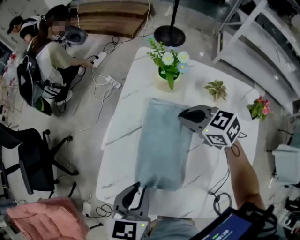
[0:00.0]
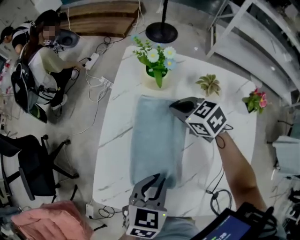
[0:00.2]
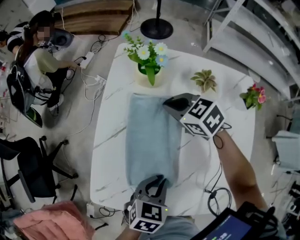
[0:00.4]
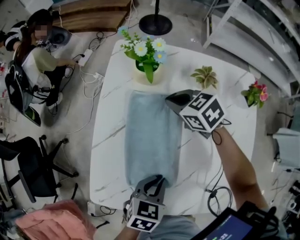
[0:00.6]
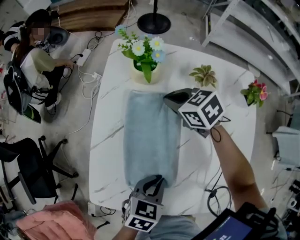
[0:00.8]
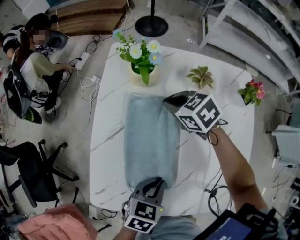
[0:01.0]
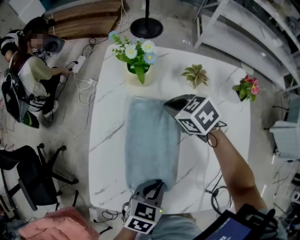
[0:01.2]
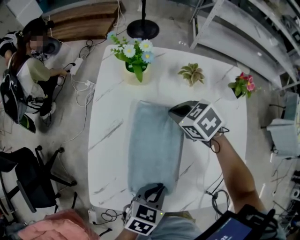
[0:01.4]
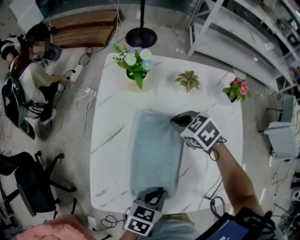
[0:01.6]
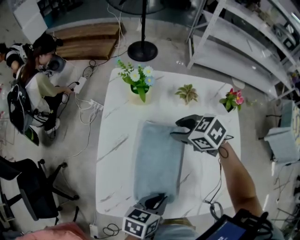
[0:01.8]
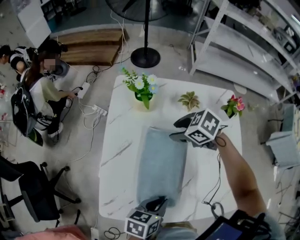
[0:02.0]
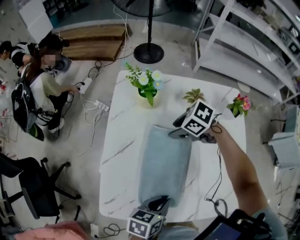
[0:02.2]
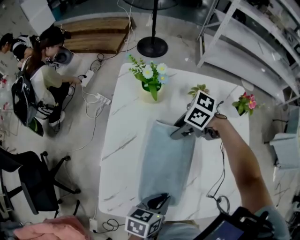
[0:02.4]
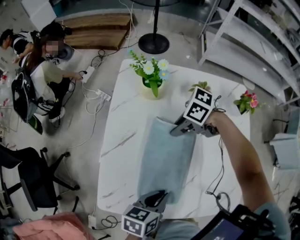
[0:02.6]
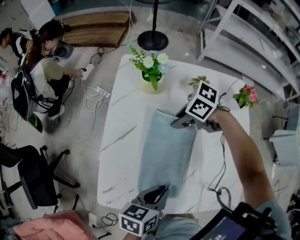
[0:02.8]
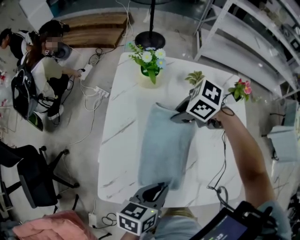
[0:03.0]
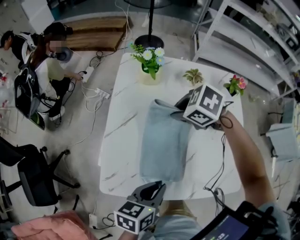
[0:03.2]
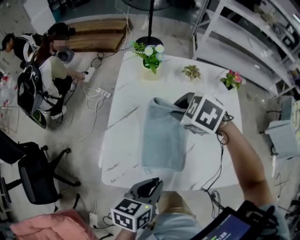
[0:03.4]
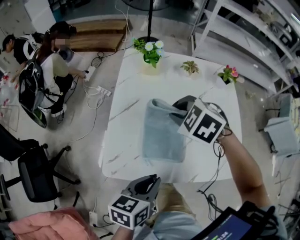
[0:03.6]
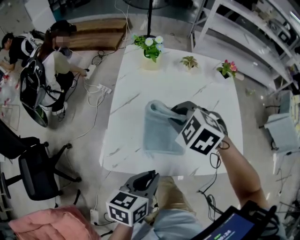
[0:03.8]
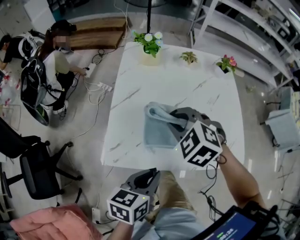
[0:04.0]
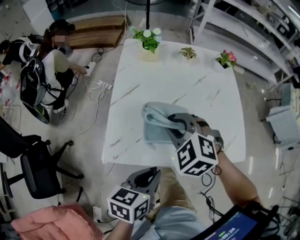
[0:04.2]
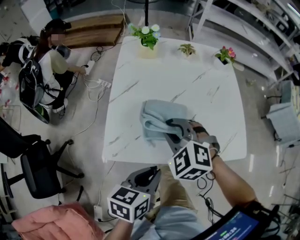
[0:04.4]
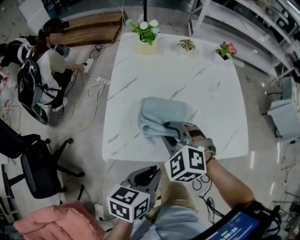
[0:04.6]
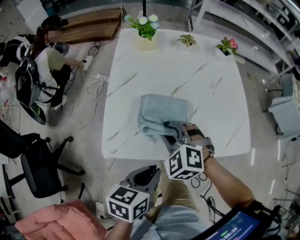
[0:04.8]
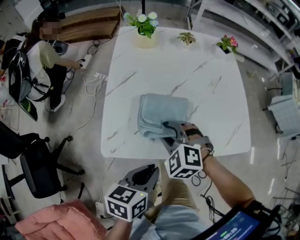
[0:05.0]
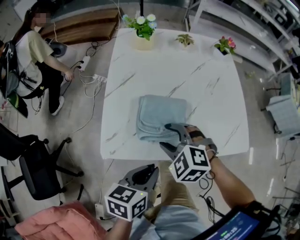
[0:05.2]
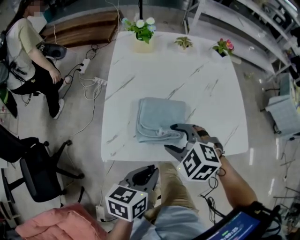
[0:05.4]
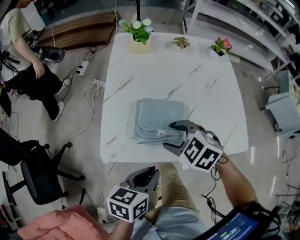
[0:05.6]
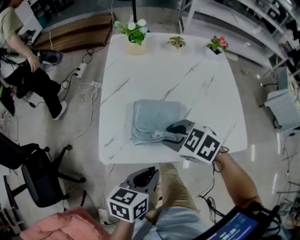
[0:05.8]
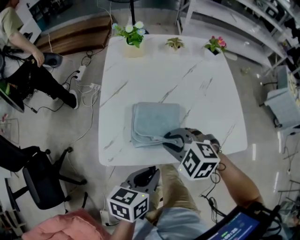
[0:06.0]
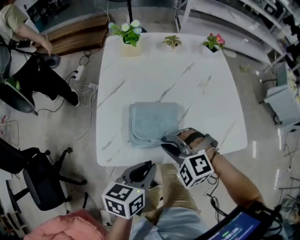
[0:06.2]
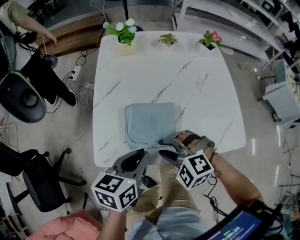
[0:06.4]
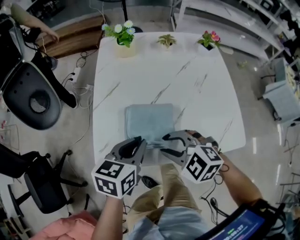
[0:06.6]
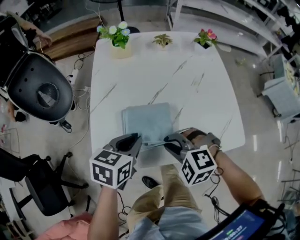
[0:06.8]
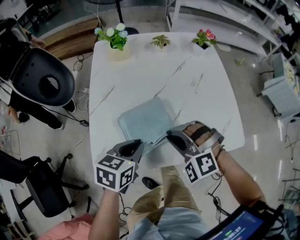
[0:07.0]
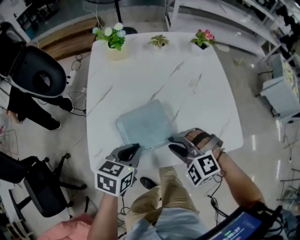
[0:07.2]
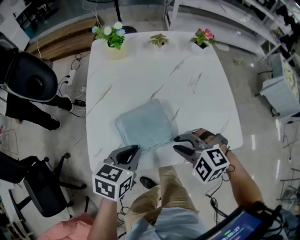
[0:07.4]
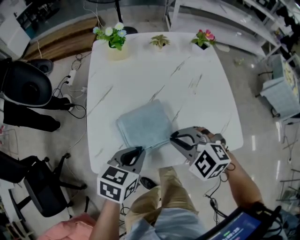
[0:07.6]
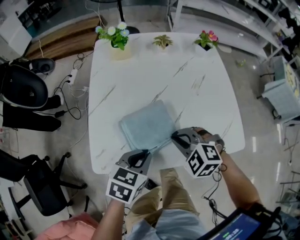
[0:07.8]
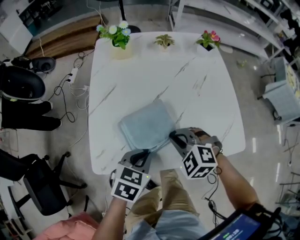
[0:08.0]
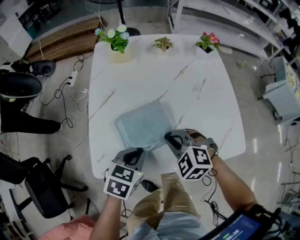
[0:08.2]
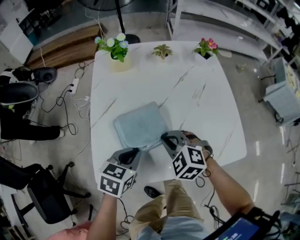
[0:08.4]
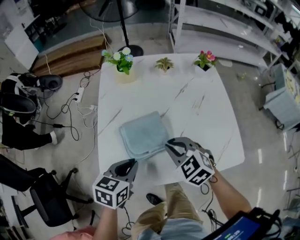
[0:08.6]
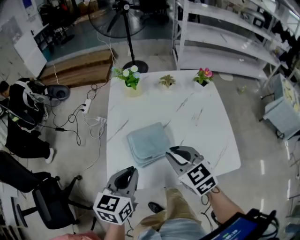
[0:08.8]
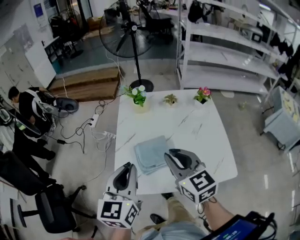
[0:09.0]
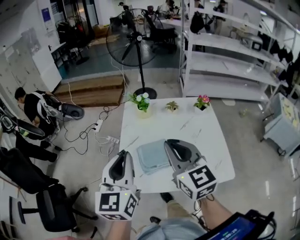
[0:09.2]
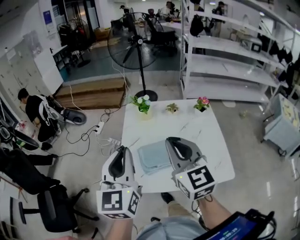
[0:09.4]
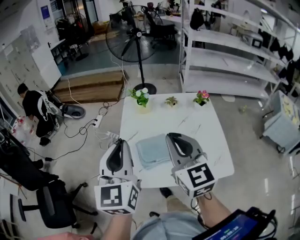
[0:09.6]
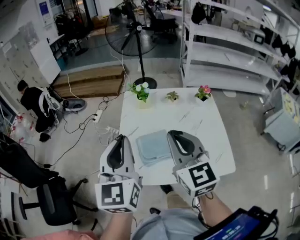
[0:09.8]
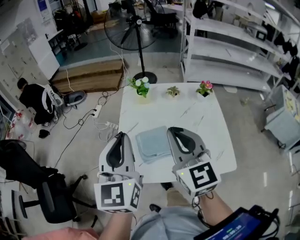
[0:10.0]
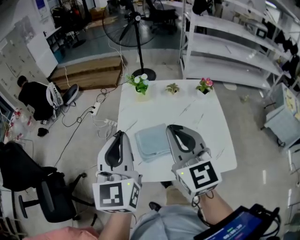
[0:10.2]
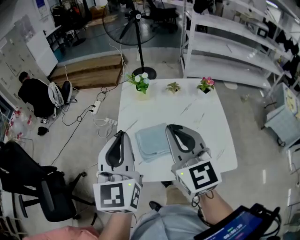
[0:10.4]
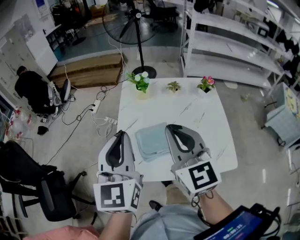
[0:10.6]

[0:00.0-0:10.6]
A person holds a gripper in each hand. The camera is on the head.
0:00.0 to 0:01.6: The left gripper changes place by some 15 cm, and rotates some 40 degrees. The right gripper ends up some 10 cm from where it was, and rotates about 20 degrees.
0:01.6 to 0:03.0: The right gripper moves up and down over approximately 5 cm, changing direction 2 times, changes its angle by about 30 degrees, and opens, then closes once more. The left gripper travels upward by approximately 5 cm.
0:03.0 to 0:04.6: The left gripper ends up some 15 cm from where it was; the right gripper moves approximately 10 cm upward and comes back, and changes its angle by approximately 60 degrees.
0:04.6 to 0:06.0: The right gripper opens, then closes once more.
0:06.0 to 0:07.6: The right gripper goes roughly 5 cm to the right. The left gripper shifts about 10 cm forward, and rotates approximately 20 degrees.
0:07.6 to 0:09.0: Both grippers move upward, roughly 20 cm. The left gripper angles its fingers upward, by some 30 degrees. The right gripper points its fingers approximately 30 degrees further upward.
0:09.0 to 0:10.6: The two grippers go approximately 10 cm upward.

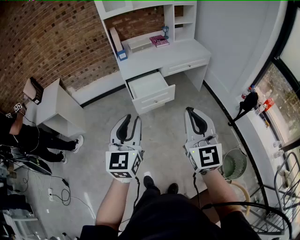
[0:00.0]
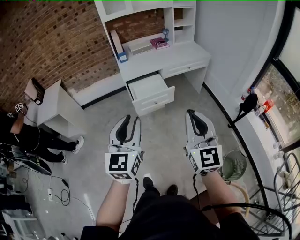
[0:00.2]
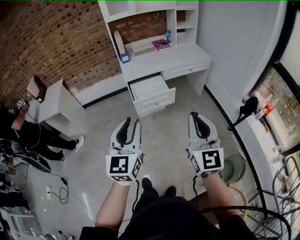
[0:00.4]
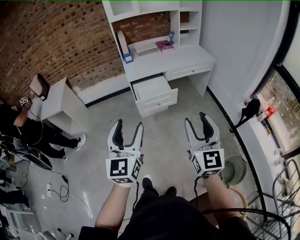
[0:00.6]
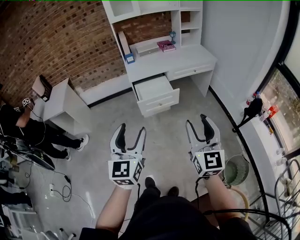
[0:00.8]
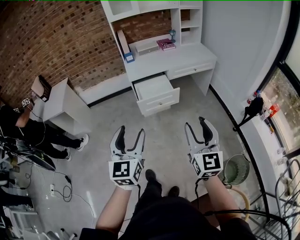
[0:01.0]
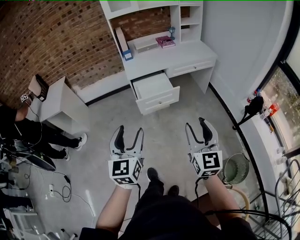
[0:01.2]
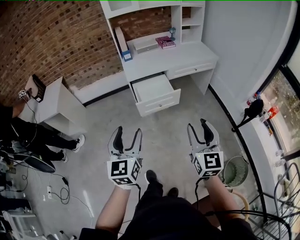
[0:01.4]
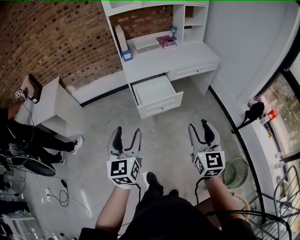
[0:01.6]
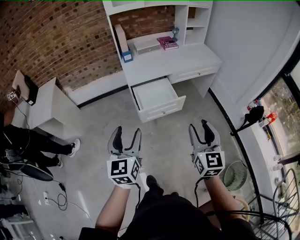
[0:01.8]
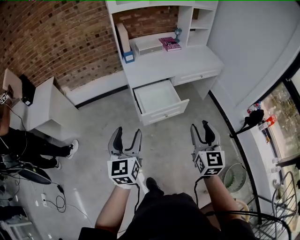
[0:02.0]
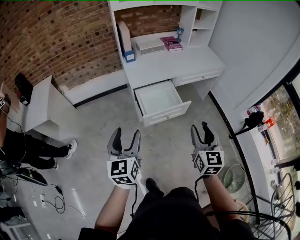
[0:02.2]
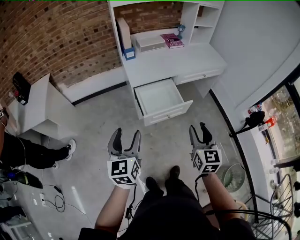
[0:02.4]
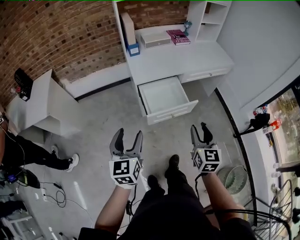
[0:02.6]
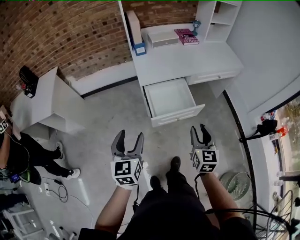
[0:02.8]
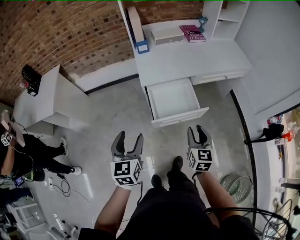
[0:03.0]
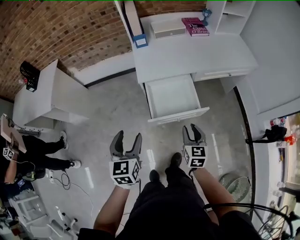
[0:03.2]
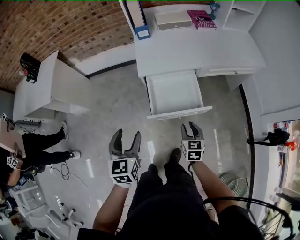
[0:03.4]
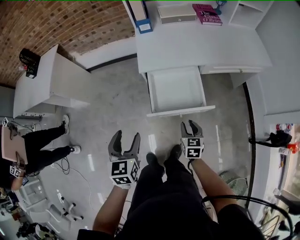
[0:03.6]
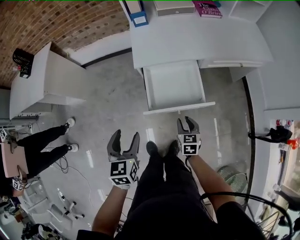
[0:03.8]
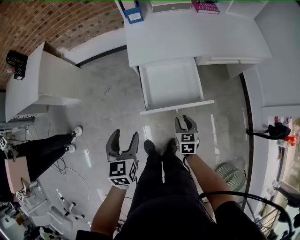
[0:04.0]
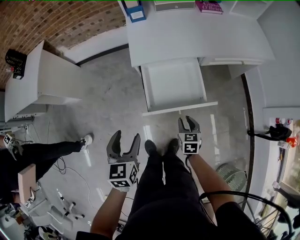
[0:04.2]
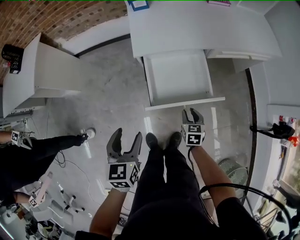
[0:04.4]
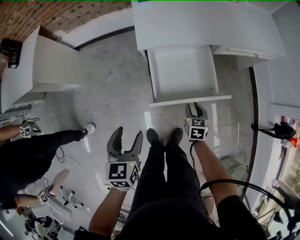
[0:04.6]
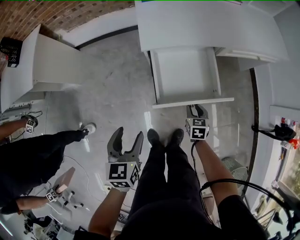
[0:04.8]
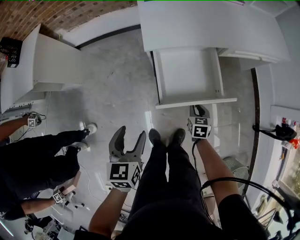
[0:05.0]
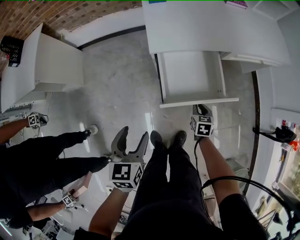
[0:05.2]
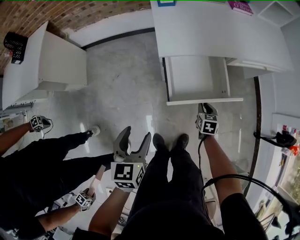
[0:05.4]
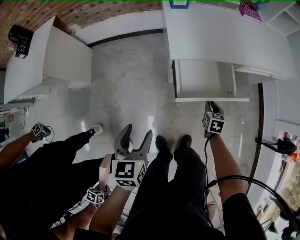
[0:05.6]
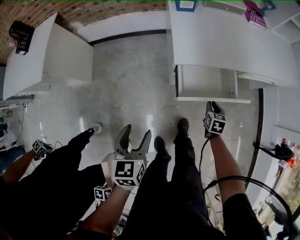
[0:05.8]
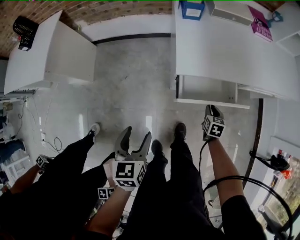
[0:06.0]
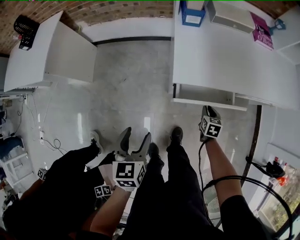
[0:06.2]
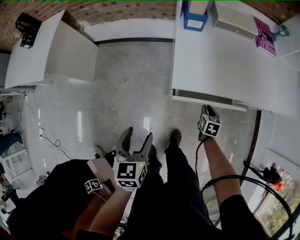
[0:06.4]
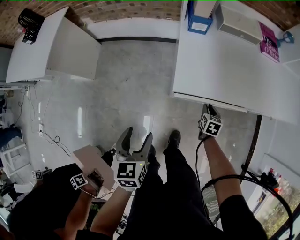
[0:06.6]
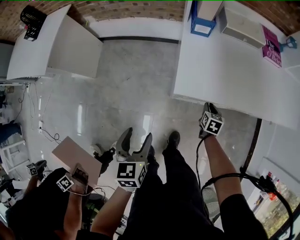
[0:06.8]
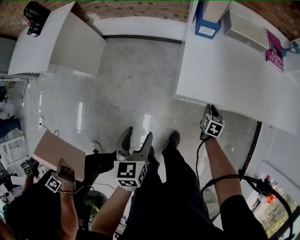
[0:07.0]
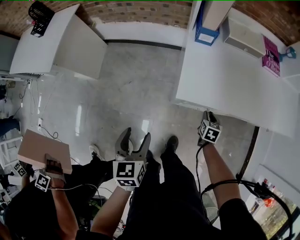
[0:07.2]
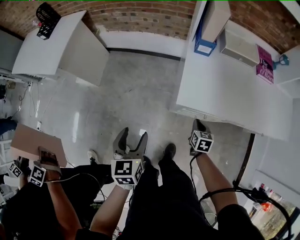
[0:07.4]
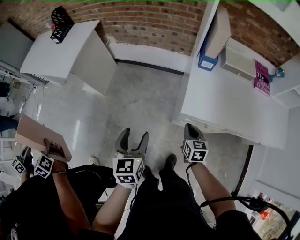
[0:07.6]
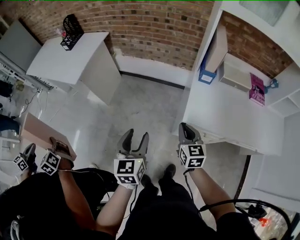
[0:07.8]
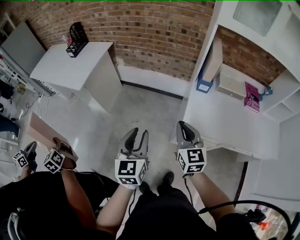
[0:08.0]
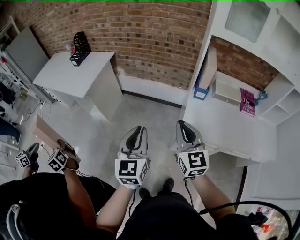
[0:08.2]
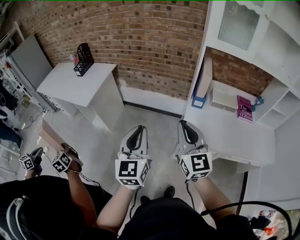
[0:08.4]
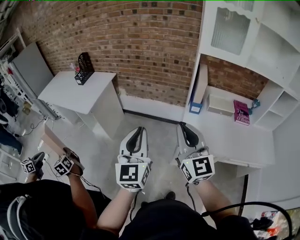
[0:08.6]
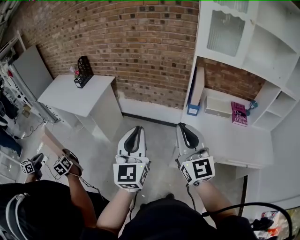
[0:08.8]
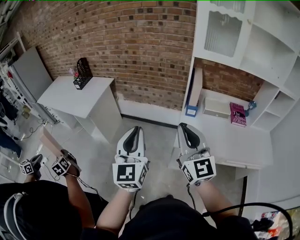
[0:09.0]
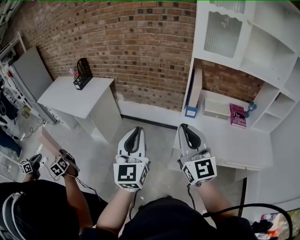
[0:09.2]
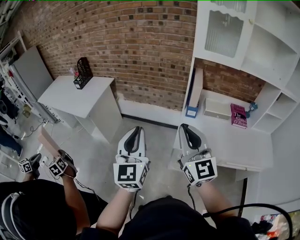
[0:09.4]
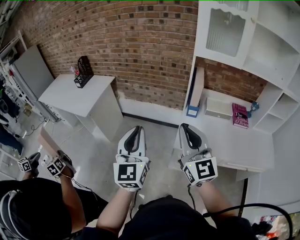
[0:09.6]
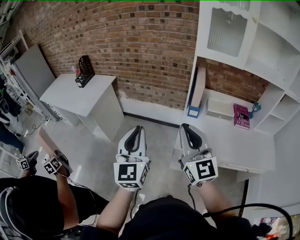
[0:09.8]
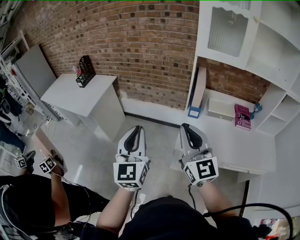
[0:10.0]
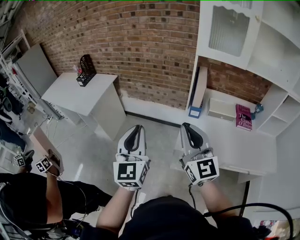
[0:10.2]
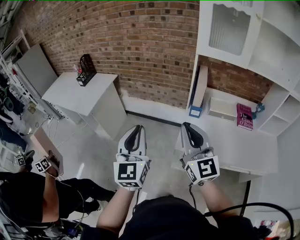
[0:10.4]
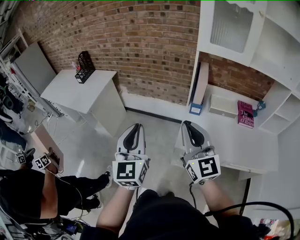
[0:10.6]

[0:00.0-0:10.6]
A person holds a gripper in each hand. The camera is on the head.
0:00.0 to 0:01.6: The left gripper is displaced forward, to the left and downward by some 15 cm, and opens its fingers. Meanwhile the right gripper is displaced downward and forward by roughly 15 cm, and opens its fingers.
0:01.6 to 0:03.0: The grippers both shift forward and downward by some 30 cm.
0:03.0 to 0:04.6: The left gripper goes approximately 15 cm downward. Meanwhile the right gripper goes some 30 cm downward, and rotates approximately 30 degrees.
0:04.6 to 0:06.0: The right gripper goes some 15 cm forward. The left gripper is displaced to the left and forward by about 15 cm.
0:06.0 to 0:07.6: The left gripper travels upward and forward by about 10 cm; the right gripper shifts roughly 25 cm upward, to the left and forward, and swivels some 30 degrees.
0:07.6 to 0:09.0: Both grippers travel together upward, roughly 40 cm. The right gripper points its fingers roughly 50 degrees further upward; the left gripper points its fingers about 40 degrees further upward, and closes up.
0:09.0 to 0:10.6: Both grippers move forward, about 5 cm.

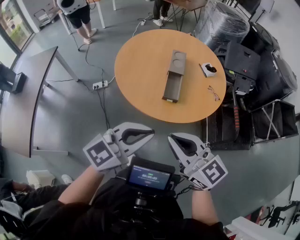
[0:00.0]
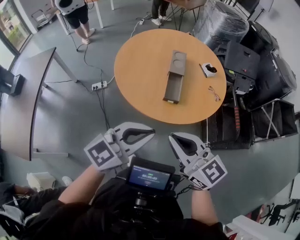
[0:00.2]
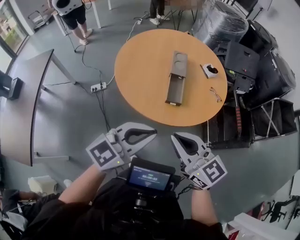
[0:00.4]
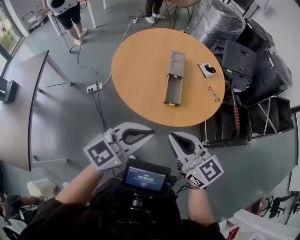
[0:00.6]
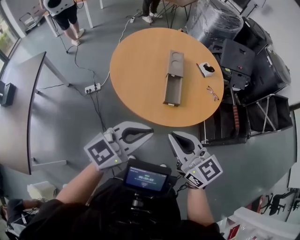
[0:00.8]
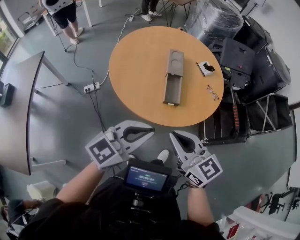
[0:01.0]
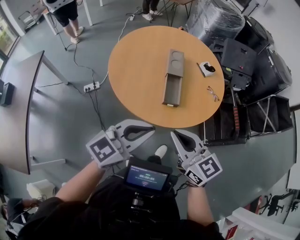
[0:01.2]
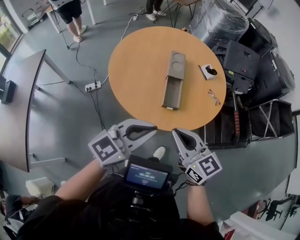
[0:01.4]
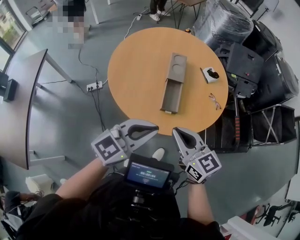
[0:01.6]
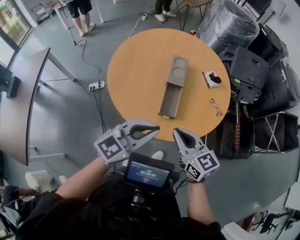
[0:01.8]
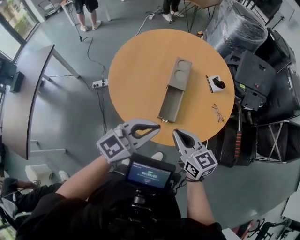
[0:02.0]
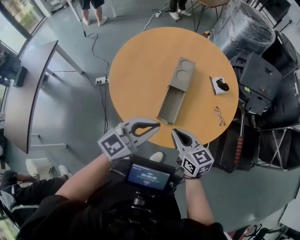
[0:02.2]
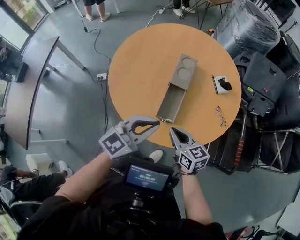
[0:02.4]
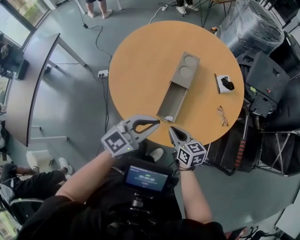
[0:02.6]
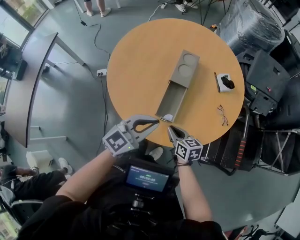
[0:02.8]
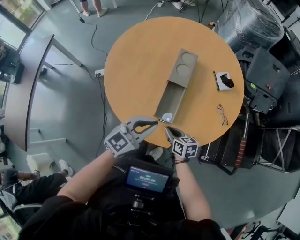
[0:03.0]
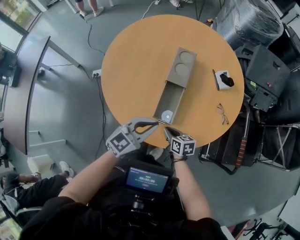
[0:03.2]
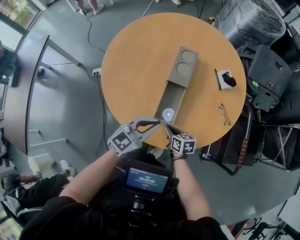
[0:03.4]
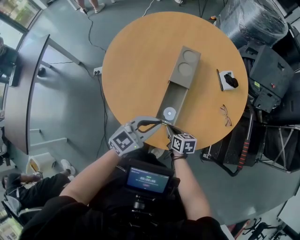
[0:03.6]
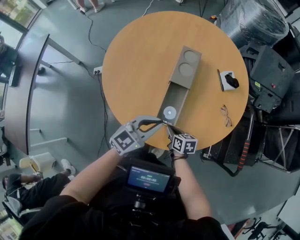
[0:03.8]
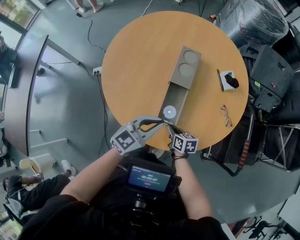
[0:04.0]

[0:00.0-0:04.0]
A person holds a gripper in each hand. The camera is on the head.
0:00.0 to 0:01.4: The left gripper shifts about 15 cm forward and to the left; the right gripper is displaced forward and downward by approximately 15 cm.
0:01.4 to 0:02.6: The left gripper shifts roughly 25 cm forward, downward and to the right. The right gripper goes about 35 cm downward, forward and to the right, and changes its angle by some 30 degrees.
0:02.6 to 0:04.0: The two grippers go some 15 cm downward and forward. The right gripper turns by some 20 degrees.
